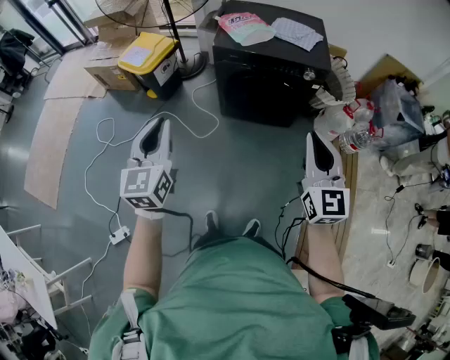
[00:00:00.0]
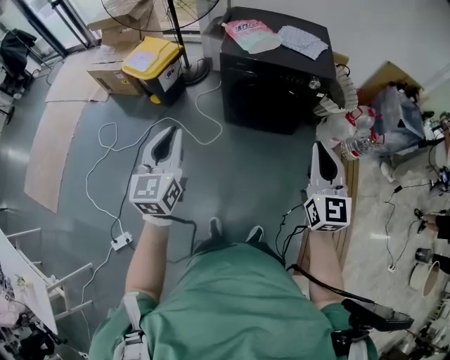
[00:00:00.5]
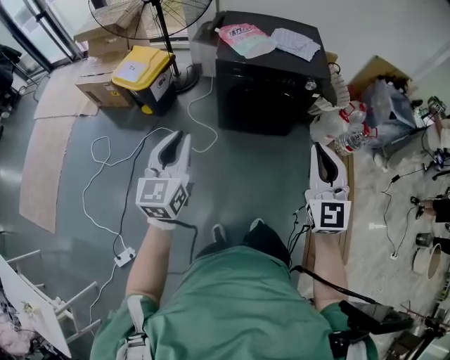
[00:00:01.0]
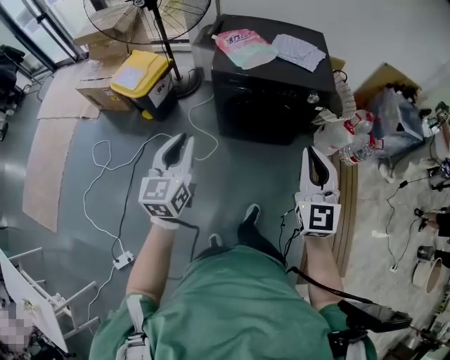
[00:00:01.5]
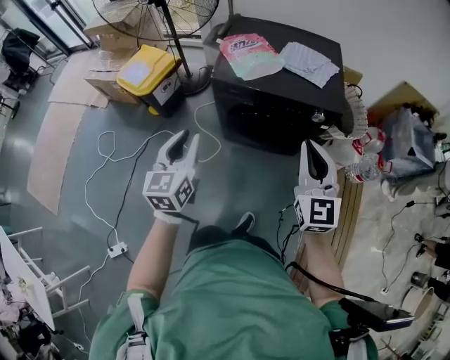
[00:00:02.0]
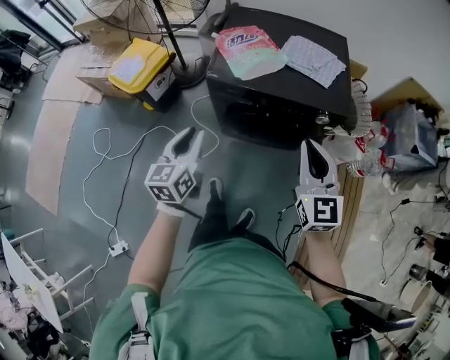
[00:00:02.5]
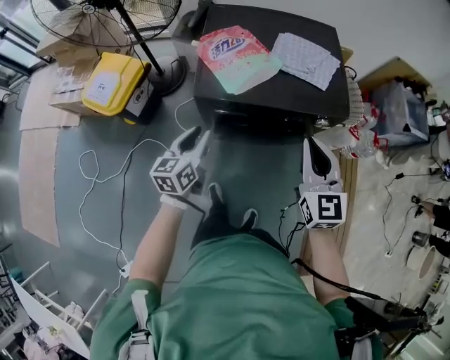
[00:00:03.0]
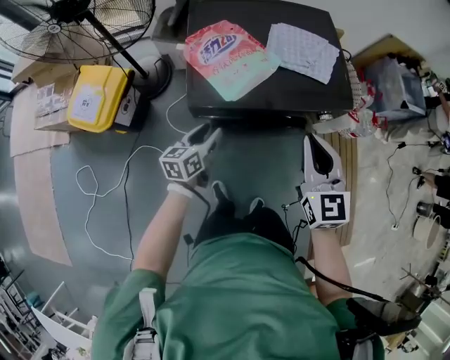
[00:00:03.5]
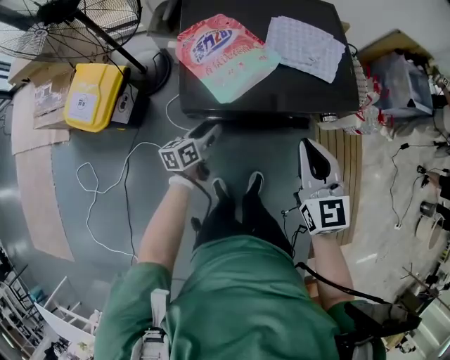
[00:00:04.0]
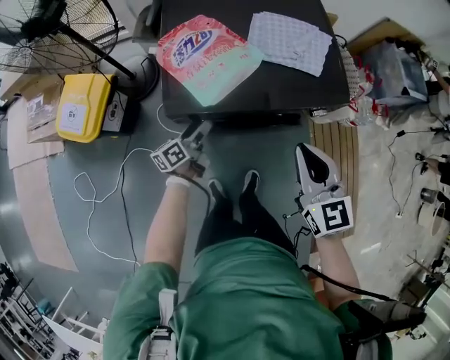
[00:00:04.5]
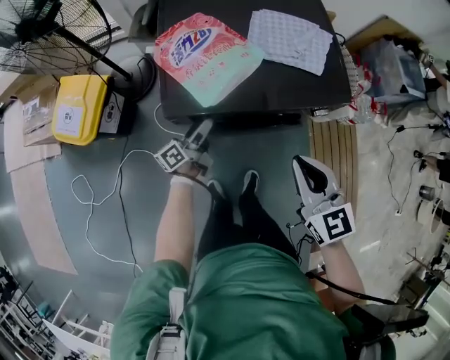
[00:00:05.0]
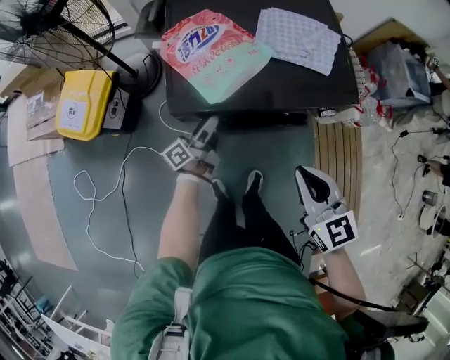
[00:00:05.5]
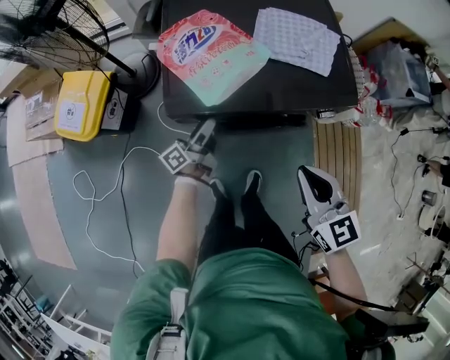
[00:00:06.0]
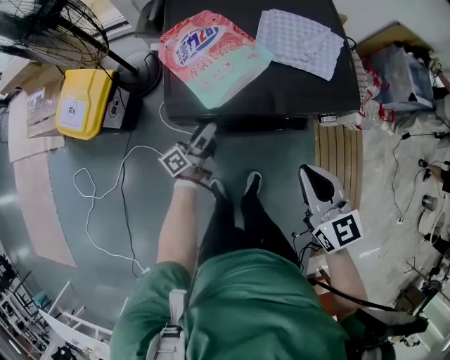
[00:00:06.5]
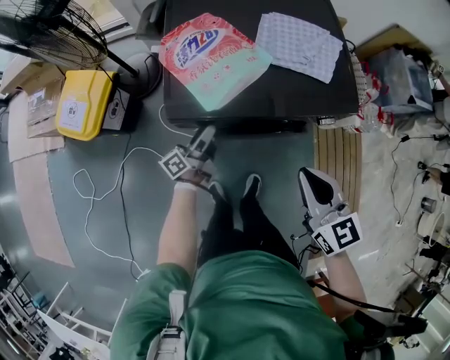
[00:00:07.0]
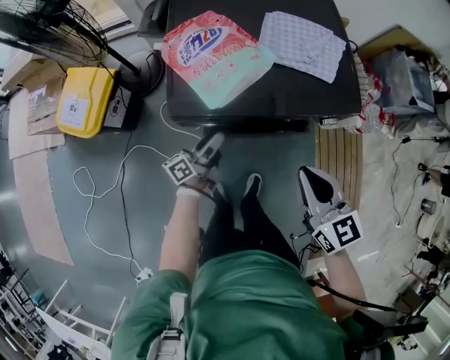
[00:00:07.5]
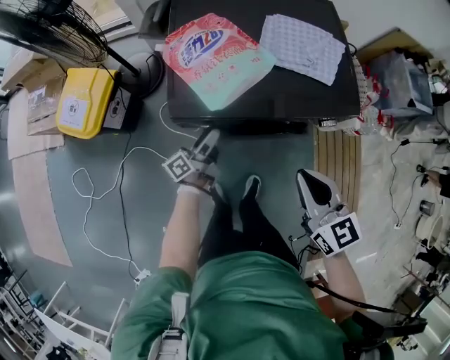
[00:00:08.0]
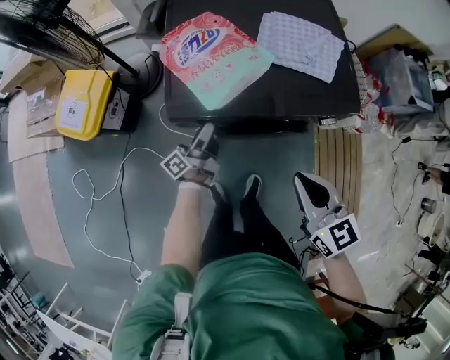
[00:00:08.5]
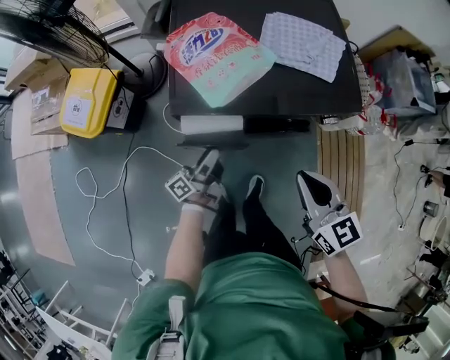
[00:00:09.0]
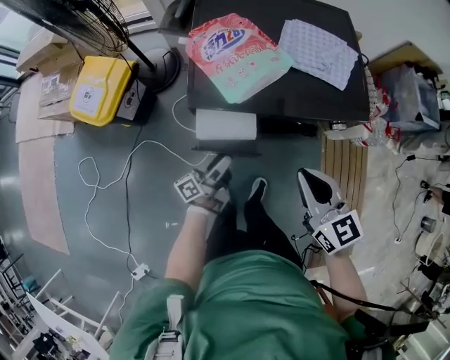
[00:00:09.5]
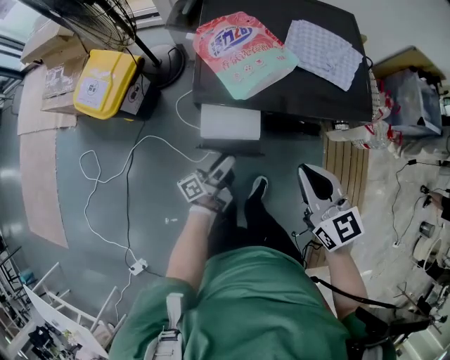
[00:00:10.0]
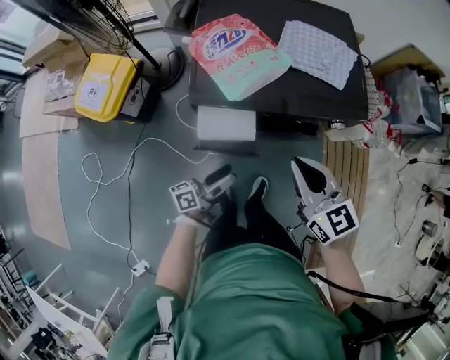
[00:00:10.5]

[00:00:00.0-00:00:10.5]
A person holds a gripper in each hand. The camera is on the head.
00:00:00.0 to 00:00:02.0: Both grippers travel together forward, approximately 20 cm.
00:00:02.0 to 00:00:04.0: The left gripper goes about 40 cm forward and downward, turns by roughly 50 degrees, and opens. The right gripper shifts some 25 cm forward and downward.
00:00:04.0 to 00:00:06.5: The left gripper rotates about 30 degrees. The right gripper moves approximately 5 cm.
00:00:06.5 to 00:00:08.5: The grippers make only small movements.
00:00:08.5 to 00:00:10.5: The right gripper moves some 5 cm, while the left gripper shifts approximately 20 cm backward, and changes its angle by roughly 20 degrees.

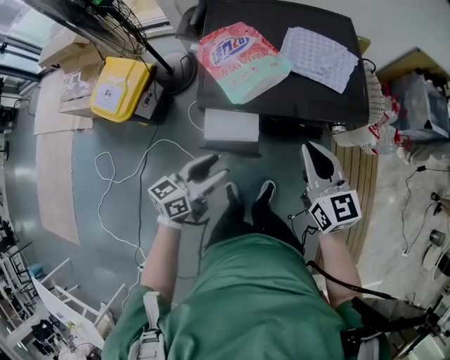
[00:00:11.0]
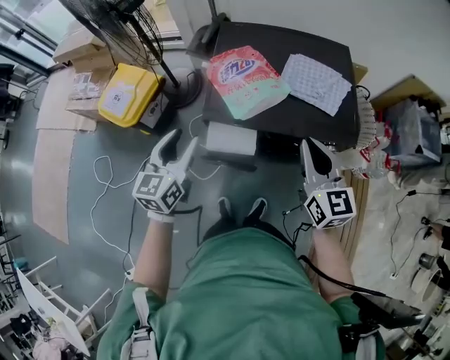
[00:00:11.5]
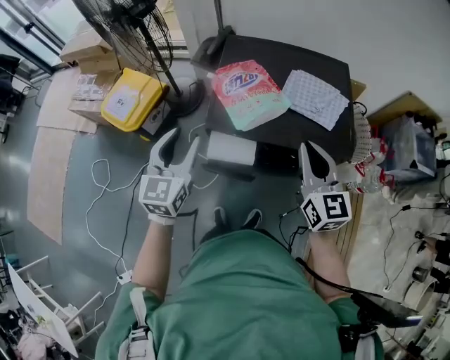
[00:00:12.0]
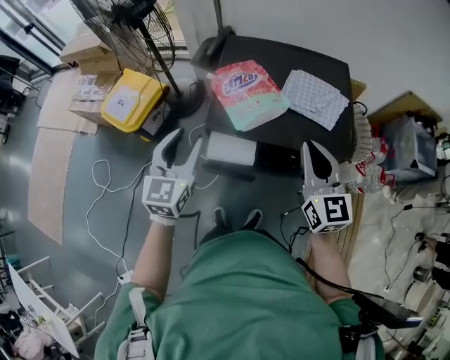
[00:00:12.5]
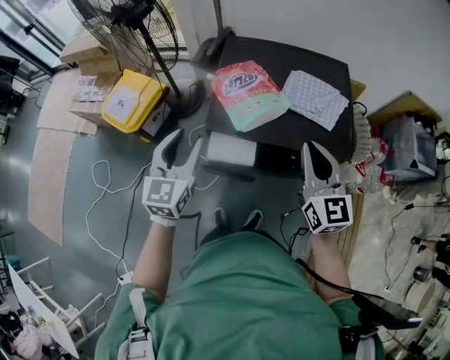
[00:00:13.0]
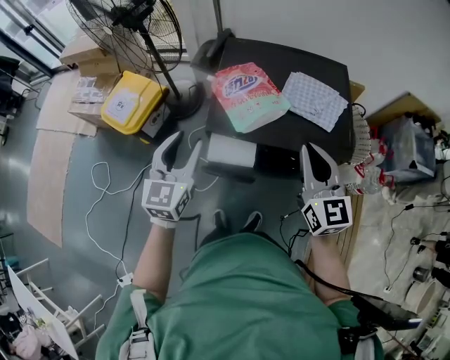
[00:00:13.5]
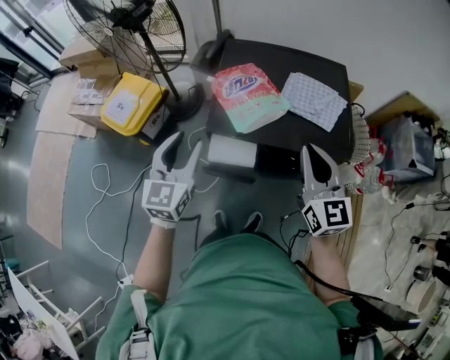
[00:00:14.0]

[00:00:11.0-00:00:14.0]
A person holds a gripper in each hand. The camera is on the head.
00:00:11.0 to 00:00:12.5: The right gripper shifts some 10 cm upward; the left gripper travels upward, forward and to the left by about 20 cm, and rotates approximately 50 degrees.
00:00:12.5 to 00:00:14.0: The grippers stay close to where they were, moving slightly.

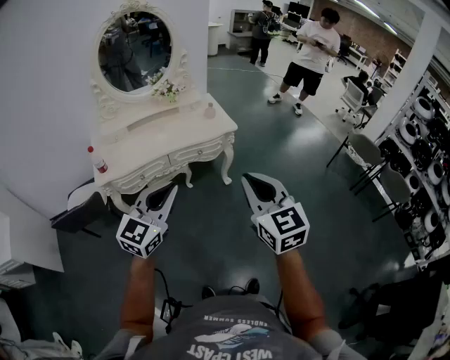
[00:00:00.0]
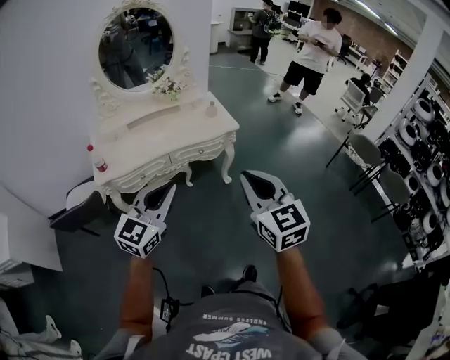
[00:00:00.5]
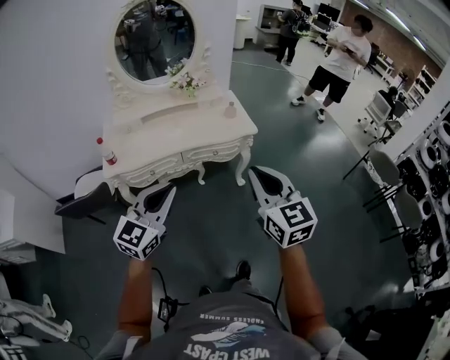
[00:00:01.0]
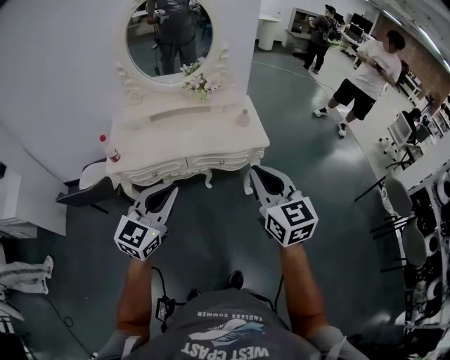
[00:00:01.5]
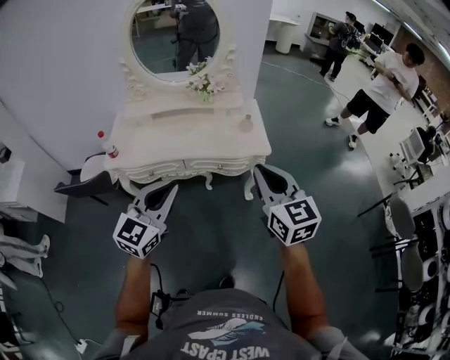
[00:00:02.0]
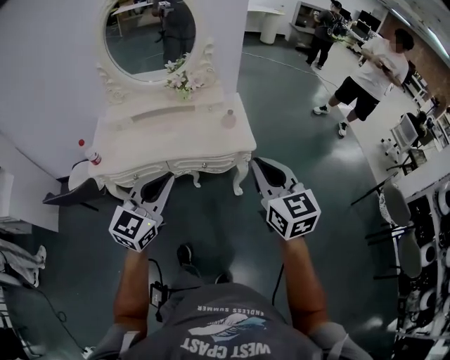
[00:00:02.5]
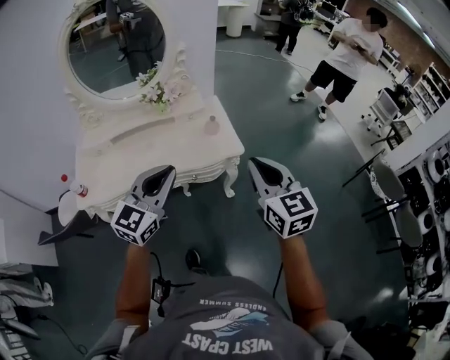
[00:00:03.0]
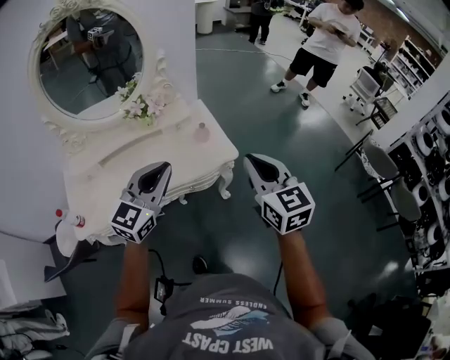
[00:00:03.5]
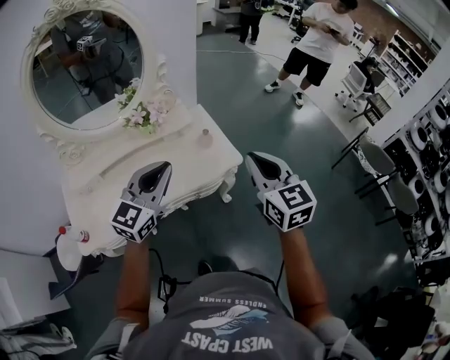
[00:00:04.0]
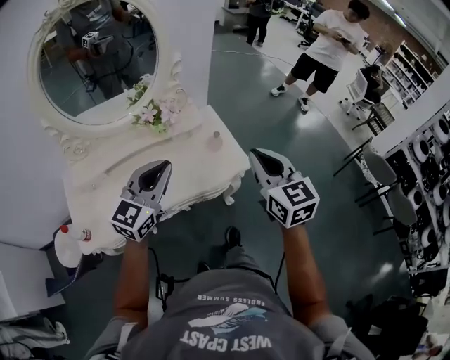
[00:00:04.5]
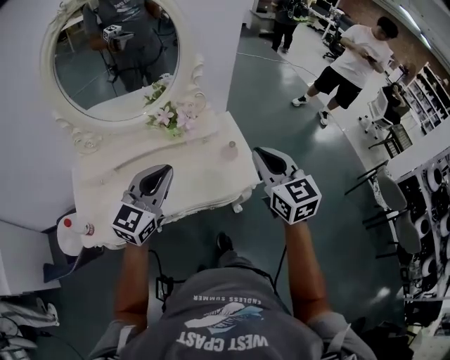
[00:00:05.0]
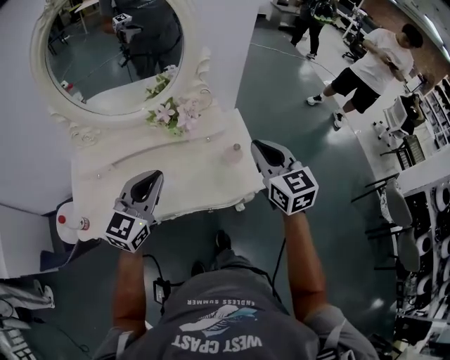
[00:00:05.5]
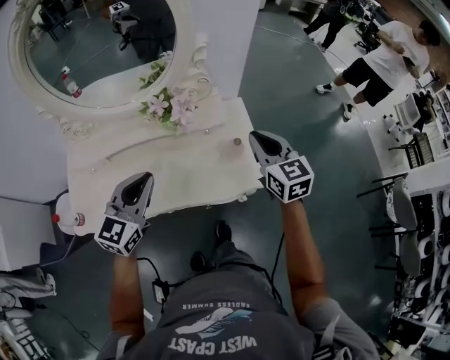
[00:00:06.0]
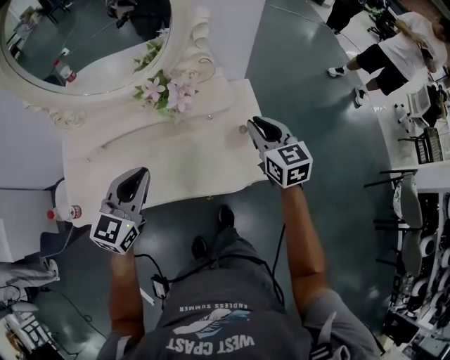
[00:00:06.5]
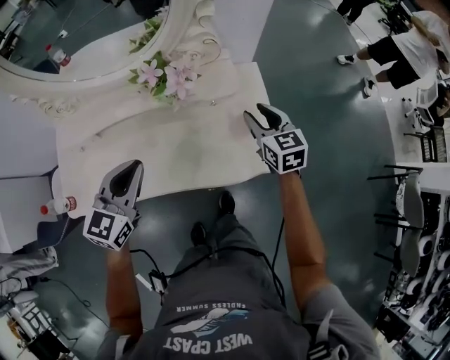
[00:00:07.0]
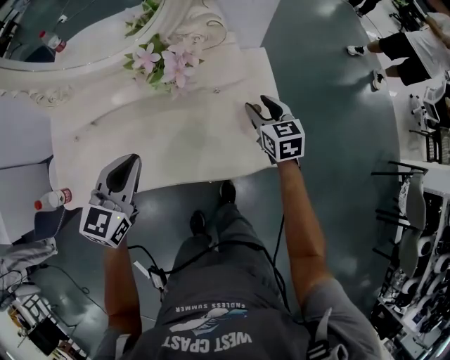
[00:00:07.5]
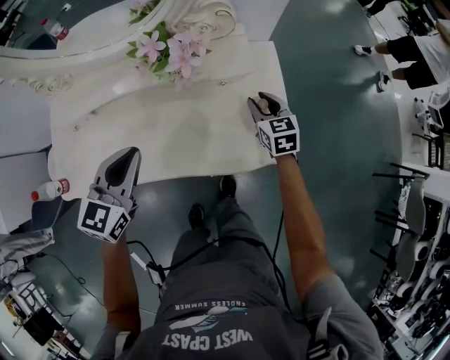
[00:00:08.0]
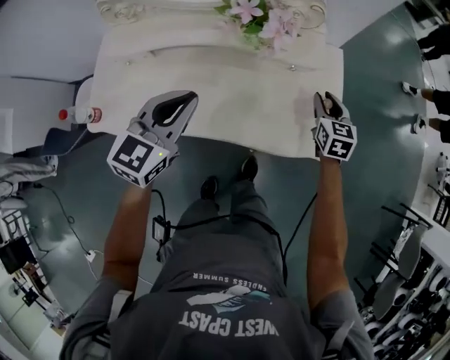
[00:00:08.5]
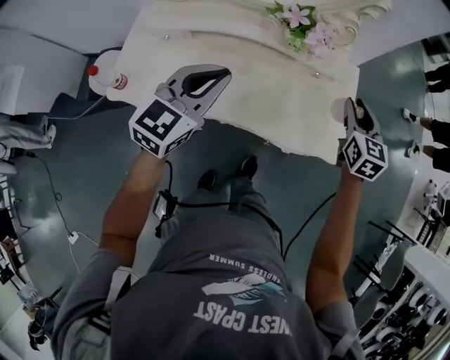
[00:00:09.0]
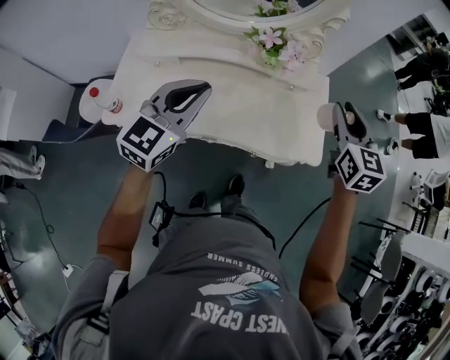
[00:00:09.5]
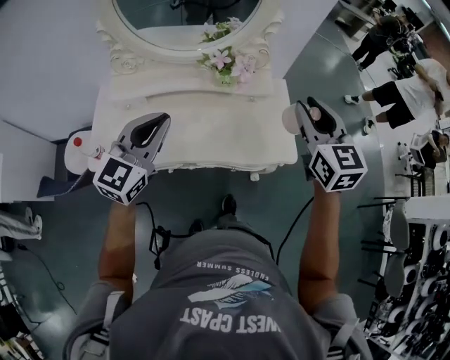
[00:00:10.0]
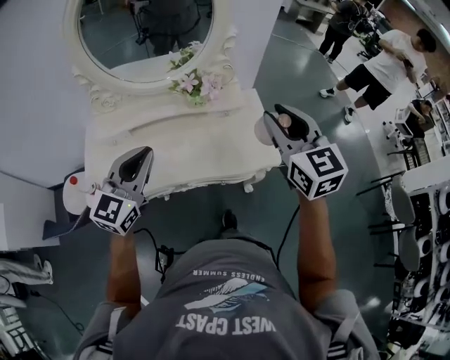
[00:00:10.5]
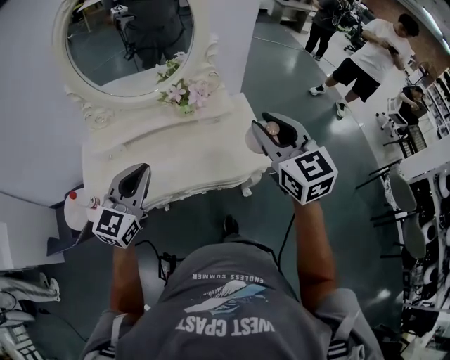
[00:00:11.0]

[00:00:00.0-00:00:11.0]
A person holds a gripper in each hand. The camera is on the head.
00:00:00.0 to 00:00:02.0: The right gripper is displaced forward by about 25 cm, and turns by approximately 20 degrees. Meanwhile the left gripper moves forward, about 15 cm, and rotates about 20 degrees.
00:00:02.0 to 00:00:03.5: The right gripper travels forward by approximately 15 cm, and swivels roughly 20 degrees. The left gripper shifts about 25 cm forward, and swivels about 20 degrees.
00:00:03.5 to 00:00:05.5: The right gripper shifts about 25 cm forward and to the left, while the left gripper heads to the left and forward, covering approximately 15 cm.
00:00:05.5 to 00:00:07.5: The right gripper shifts roughly 30 cm downward and forward, and opens. The left gripper travels downward by some 15 cm.
00:00:07.5 to 00:00:09.0: The left gripper shifts roughly 5 cm upward; the right gripper goes roughly 15 cm upward.
00:00:09.0 to 00:00:11.0: The left gripper is displaced upward and backward by approximately 15 cm. The right gripper goes some 30 cm upward and backward.

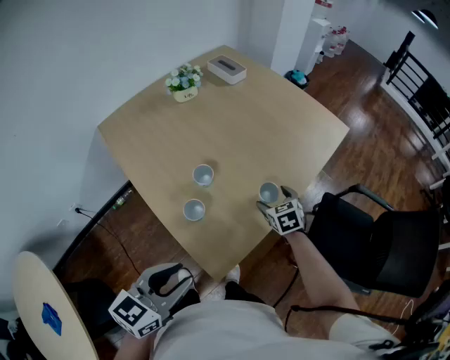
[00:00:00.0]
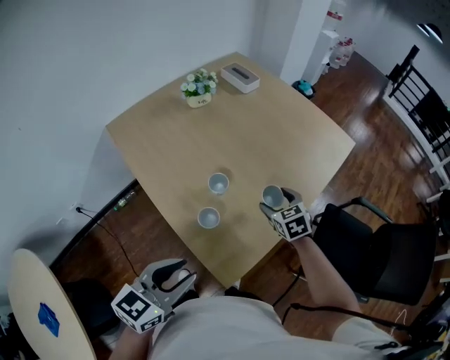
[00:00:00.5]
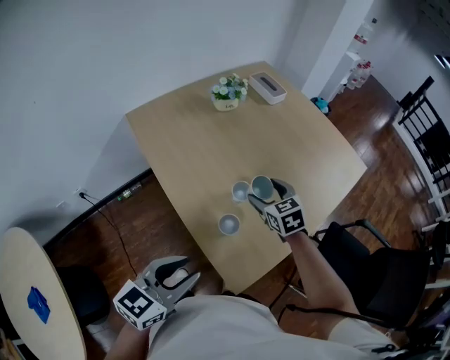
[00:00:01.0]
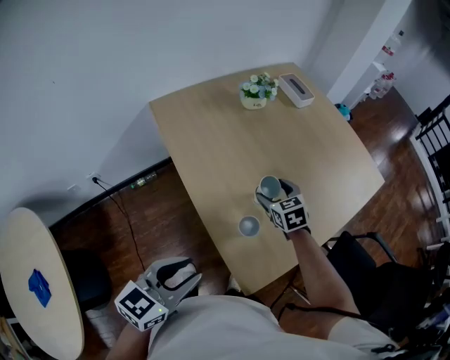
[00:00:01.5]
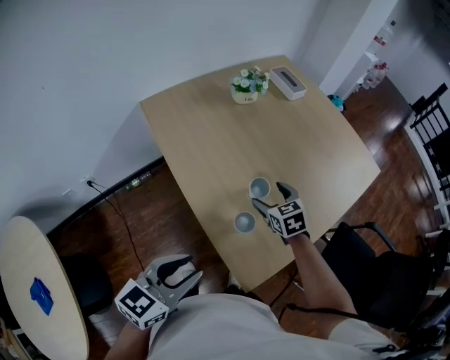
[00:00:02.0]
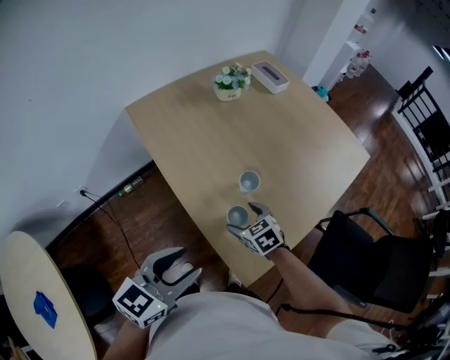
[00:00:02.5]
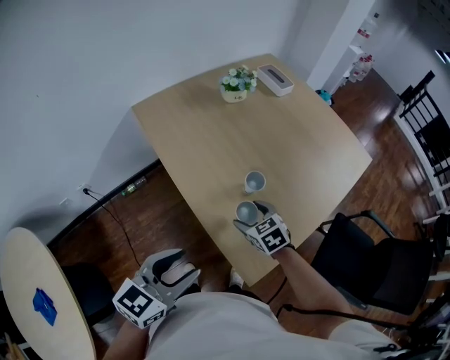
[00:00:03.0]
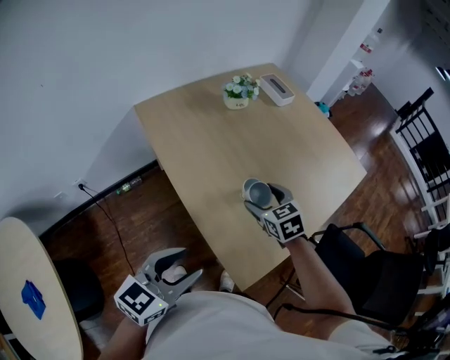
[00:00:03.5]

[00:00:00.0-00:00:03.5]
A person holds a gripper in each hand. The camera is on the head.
00:00:00.0 to 00:00:02.0: The right gripper shifts about 20 cm to the left, while the left gripper travels to the left by roughly 15 cm.
00:00:02.0 to 00:00:03.5: The right gripper heads upward, covering roughly 5 cm.
